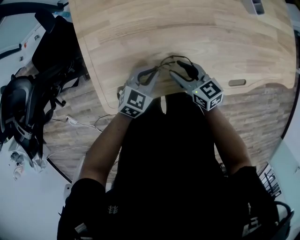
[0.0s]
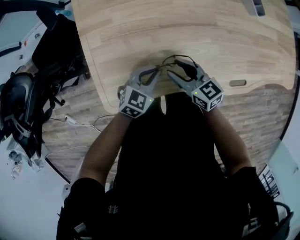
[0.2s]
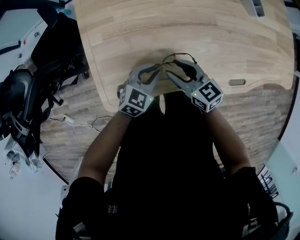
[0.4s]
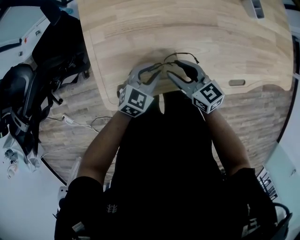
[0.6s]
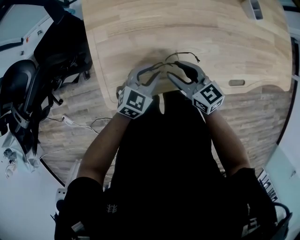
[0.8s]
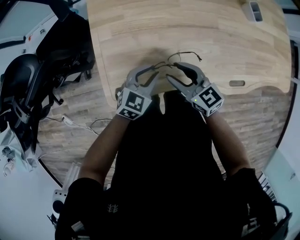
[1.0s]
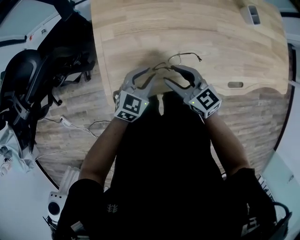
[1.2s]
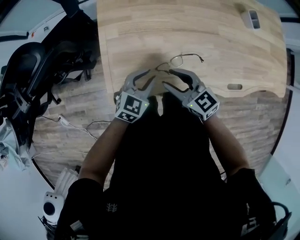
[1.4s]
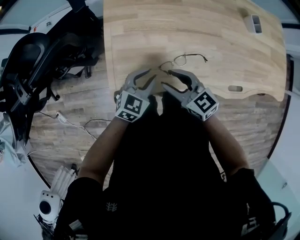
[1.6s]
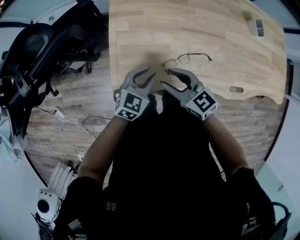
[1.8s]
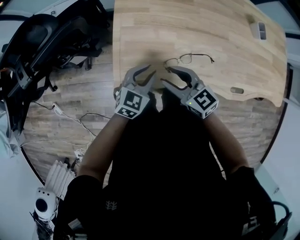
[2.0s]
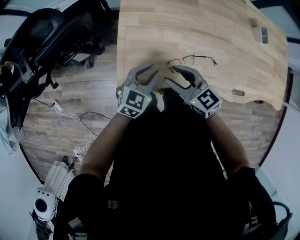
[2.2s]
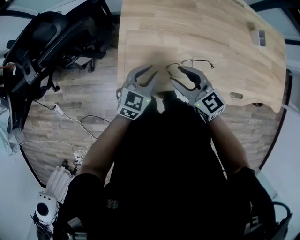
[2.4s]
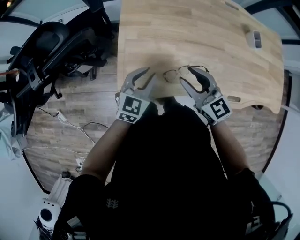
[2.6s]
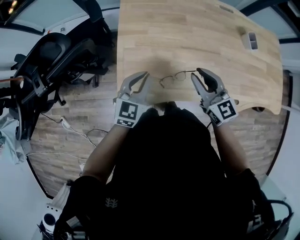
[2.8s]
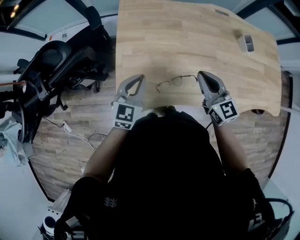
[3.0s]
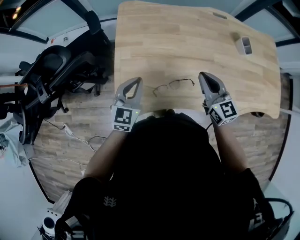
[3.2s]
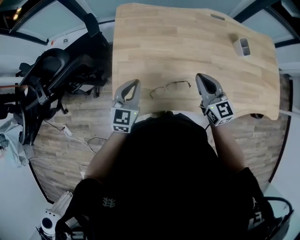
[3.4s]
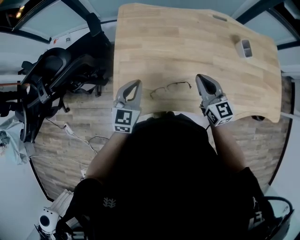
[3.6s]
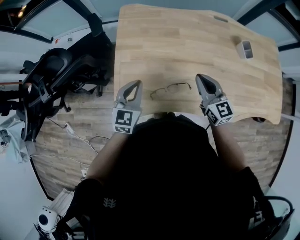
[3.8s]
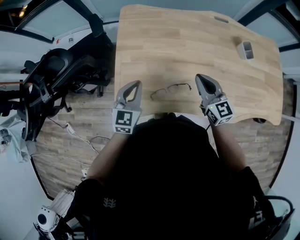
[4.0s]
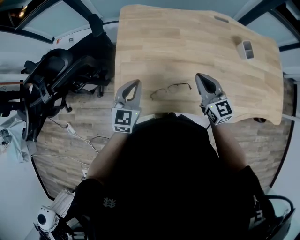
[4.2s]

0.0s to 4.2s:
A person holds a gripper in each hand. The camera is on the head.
0.0s to 1.4s: The right gripper shifts approximately 15 cm to the left, upward and backward, and turns by about 20 degrees. The left gripper heads to the left and upward, covering approximately 10 cm.
1.4s to 2.8s: The right gripper goes some 15 cm upward and to the right. The left gripper goes roughly 10 cm upward and to the left, swivels roughly 20 degrees, and closes its fingers.
2.8s to 4.2s: The right gripper goes approximately 10 cm to the right, and closes its fingers.

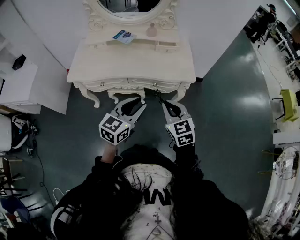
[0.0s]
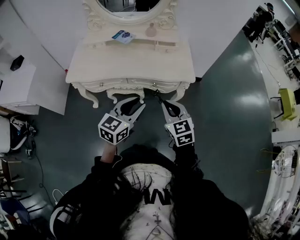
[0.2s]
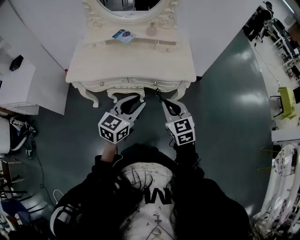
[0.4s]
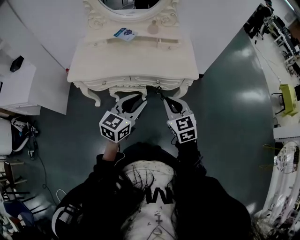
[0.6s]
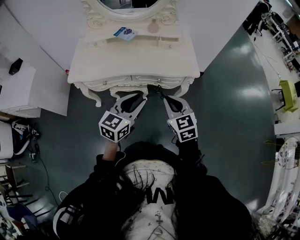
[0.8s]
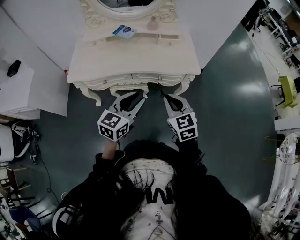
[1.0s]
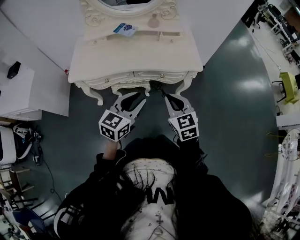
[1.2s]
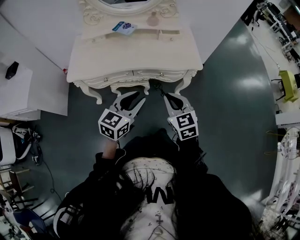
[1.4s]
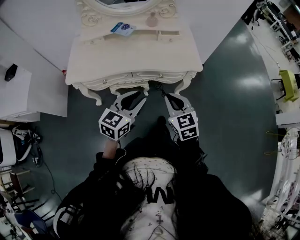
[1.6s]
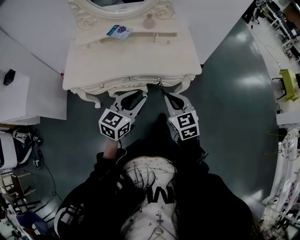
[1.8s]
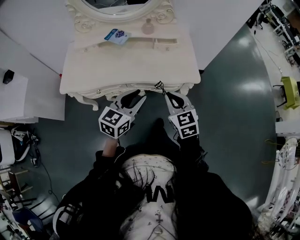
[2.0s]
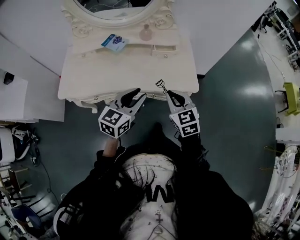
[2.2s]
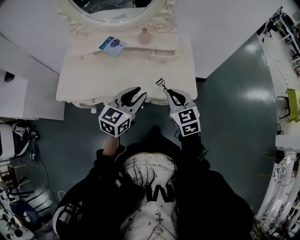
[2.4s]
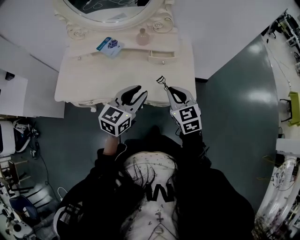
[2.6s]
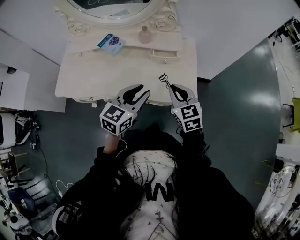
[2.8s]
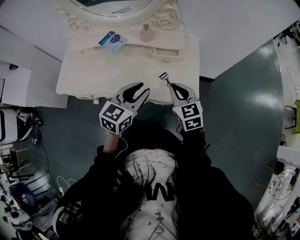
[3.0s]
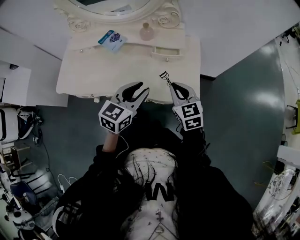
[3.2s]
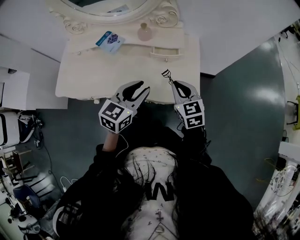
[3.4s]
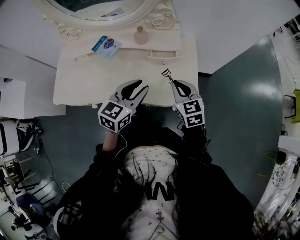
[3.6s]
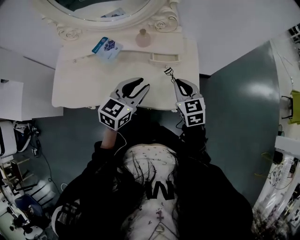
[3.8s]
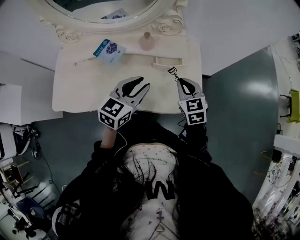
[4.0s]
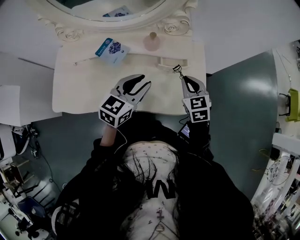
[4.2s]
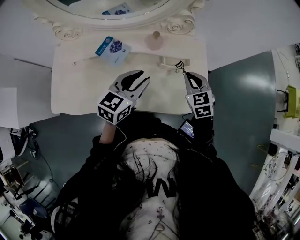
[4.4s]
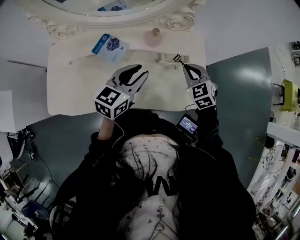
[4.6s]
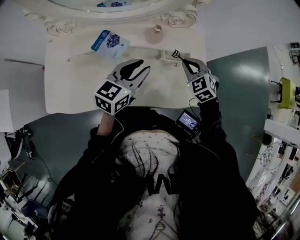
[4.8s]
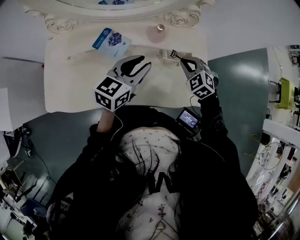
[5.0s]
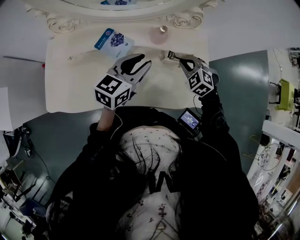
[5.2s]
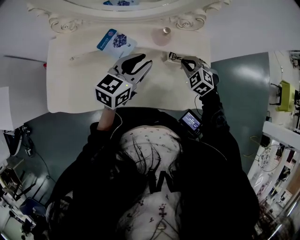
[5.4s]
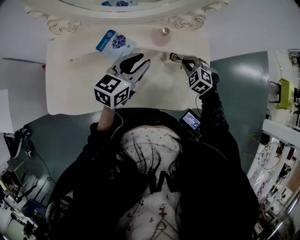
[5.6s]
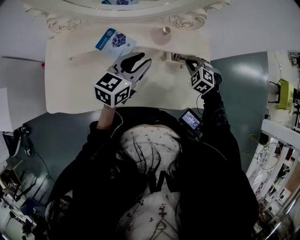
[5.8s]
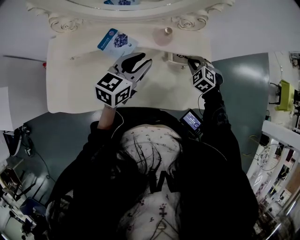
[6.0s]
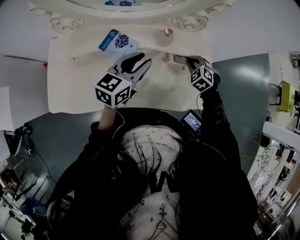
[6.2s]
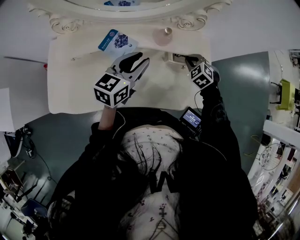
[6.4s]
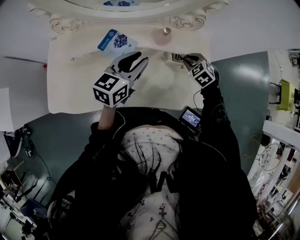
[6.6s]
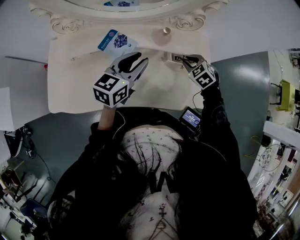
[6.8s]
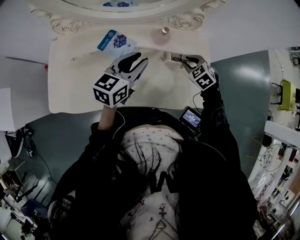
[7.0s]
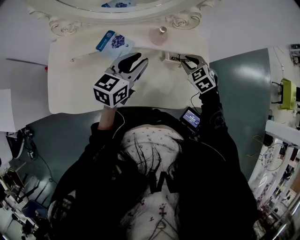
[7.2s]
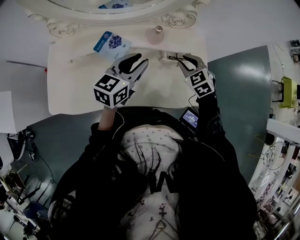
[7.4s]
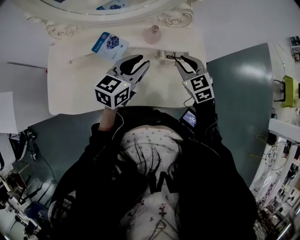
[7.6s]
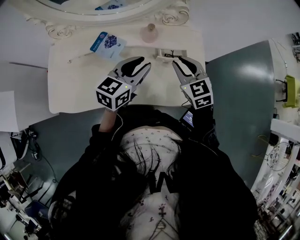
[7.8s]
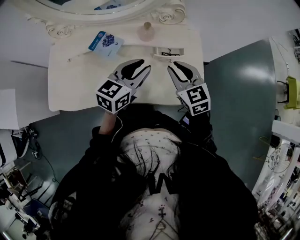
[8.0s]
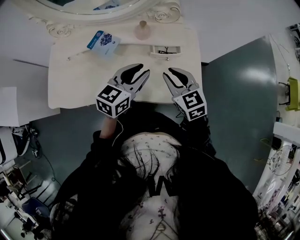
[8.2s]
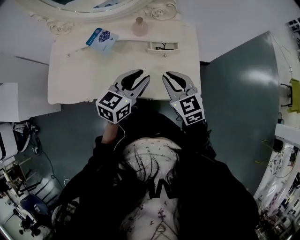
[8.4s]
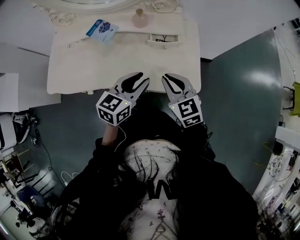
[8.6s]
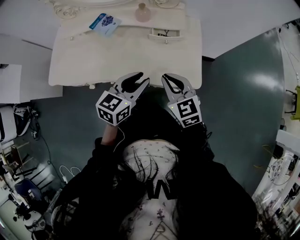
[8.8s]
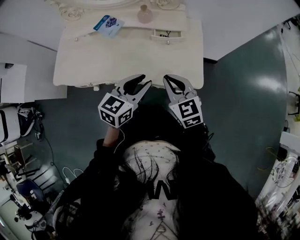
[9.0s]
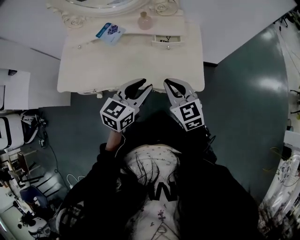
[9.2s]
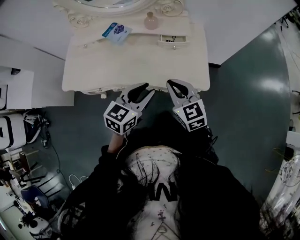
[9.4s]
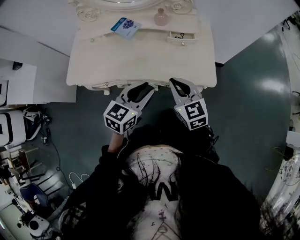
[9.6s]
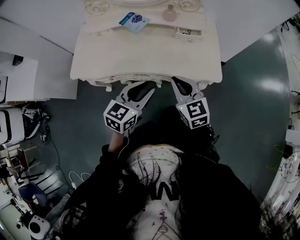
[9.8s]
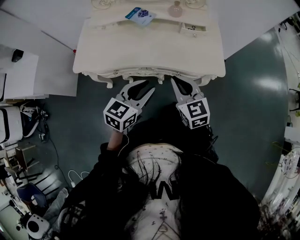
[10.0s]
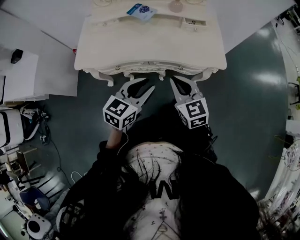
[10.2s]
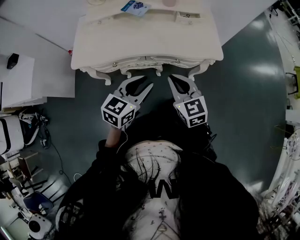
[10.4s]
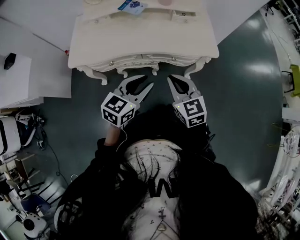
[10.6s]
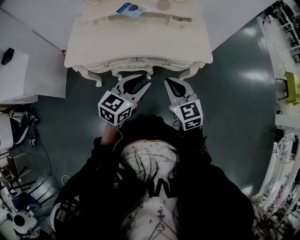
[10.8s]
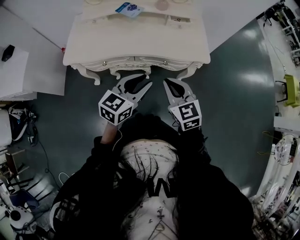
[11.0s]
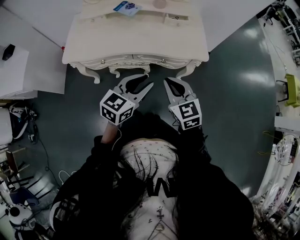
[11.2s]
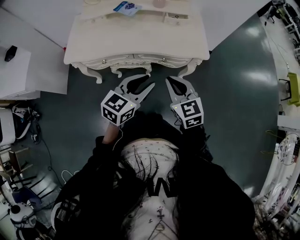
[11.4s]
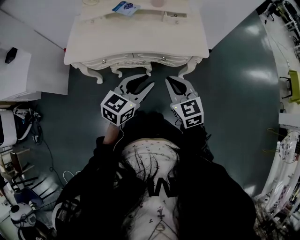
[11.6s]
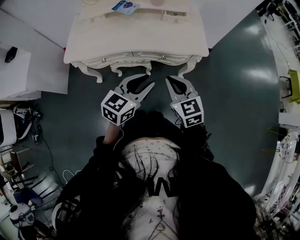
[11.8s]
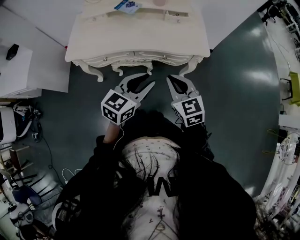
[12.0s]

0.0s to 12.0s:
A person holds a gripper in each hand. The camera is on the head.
0.0s to 1.6s: Both grippers travel together to the left, about 5 cm.
1.6s to 3.0s: The right gripper is displaced forward by some 25 cm; the left gripper shifts approximately 25 cm forward and to the right.
3.0s to 4.4s: The left gripper moves forward and to the left, some 15 cm; the right gripper shifts approximately 15 cm forward.
4.4s to 6.0s: The right gripper moves downward and forward, some 10 cm, and rotates some 40 degrees. Meanwhile the left gripper moves forward and to the left, about 5 cm.
6.0s to 7.6s: The right gripper travels upward by some 10 cm, and turns by some 40 degrees.
7.6s to 9.0s: The right gripper goes roughly 20 cm backward. Meanwhile the left gripper goes approximately 20 cm backward and to the right.
9.0s to 10.4s: Both grippers move backward and to the left, roughly 25 cm.
10.4s to 12.0s: The grippers both shift to the right by about 10 cm.

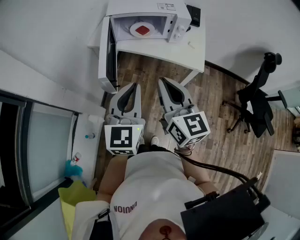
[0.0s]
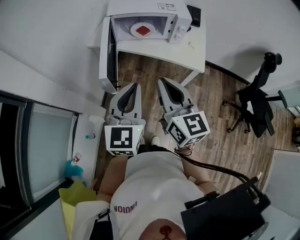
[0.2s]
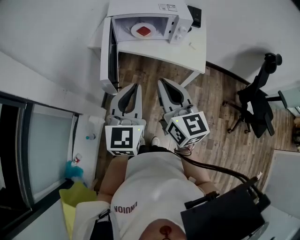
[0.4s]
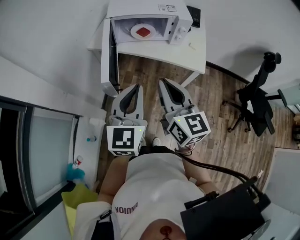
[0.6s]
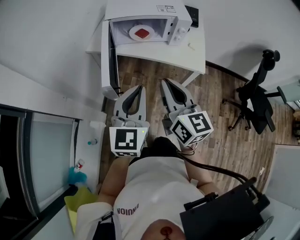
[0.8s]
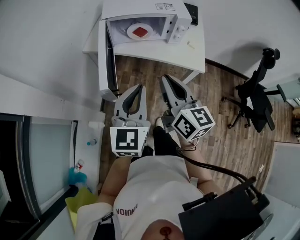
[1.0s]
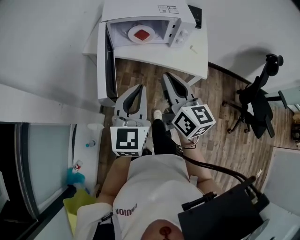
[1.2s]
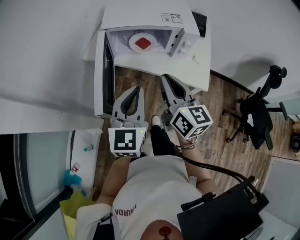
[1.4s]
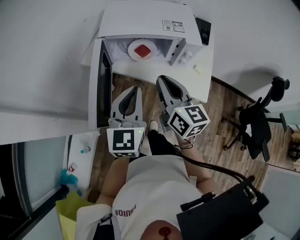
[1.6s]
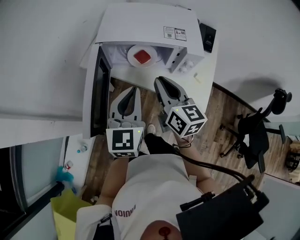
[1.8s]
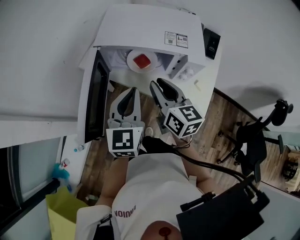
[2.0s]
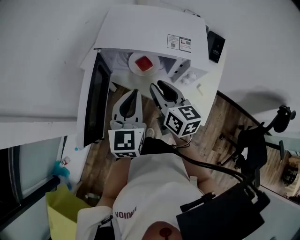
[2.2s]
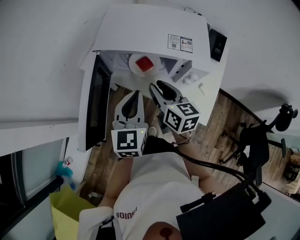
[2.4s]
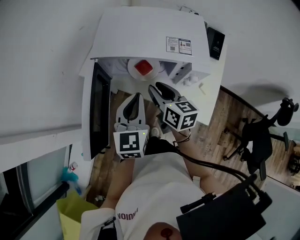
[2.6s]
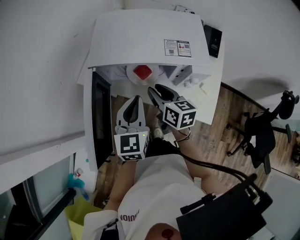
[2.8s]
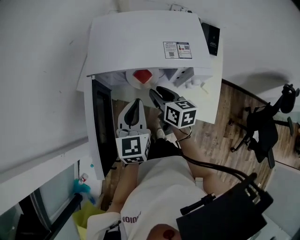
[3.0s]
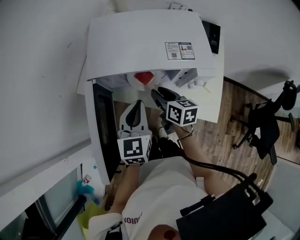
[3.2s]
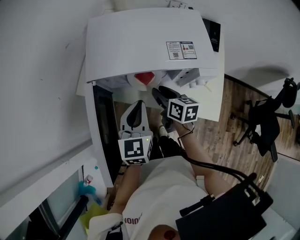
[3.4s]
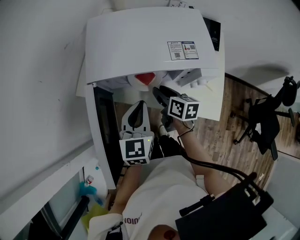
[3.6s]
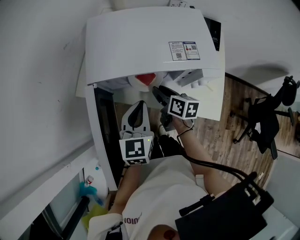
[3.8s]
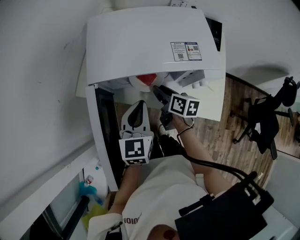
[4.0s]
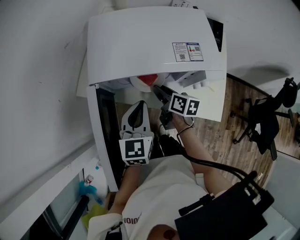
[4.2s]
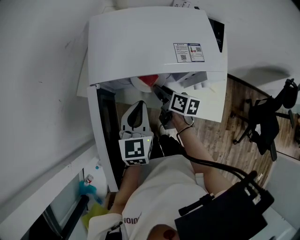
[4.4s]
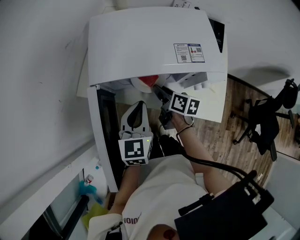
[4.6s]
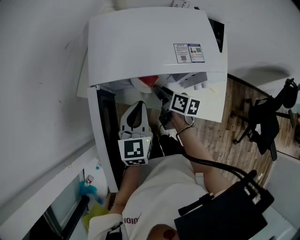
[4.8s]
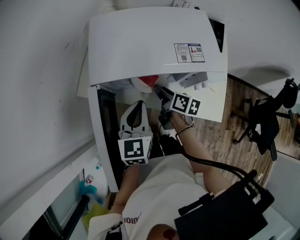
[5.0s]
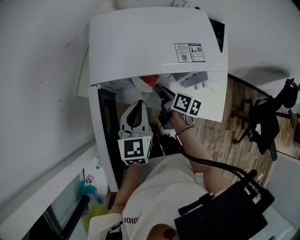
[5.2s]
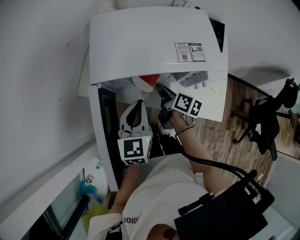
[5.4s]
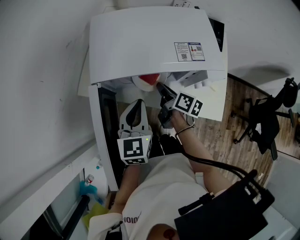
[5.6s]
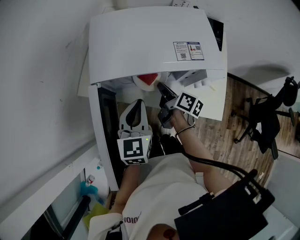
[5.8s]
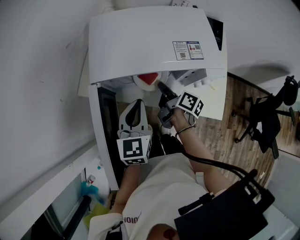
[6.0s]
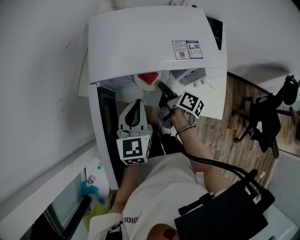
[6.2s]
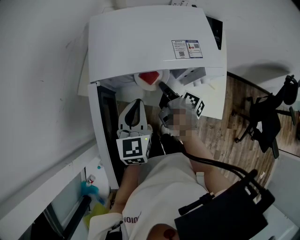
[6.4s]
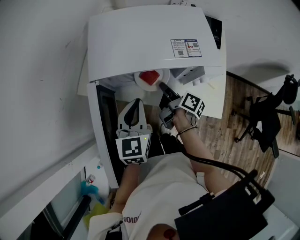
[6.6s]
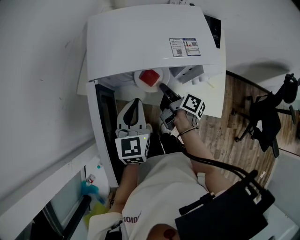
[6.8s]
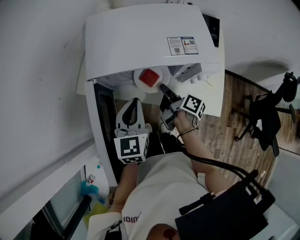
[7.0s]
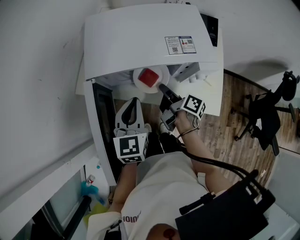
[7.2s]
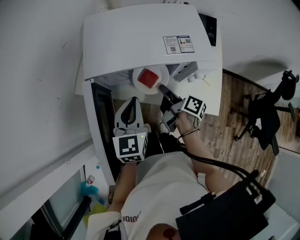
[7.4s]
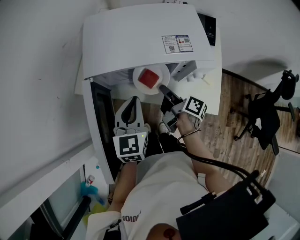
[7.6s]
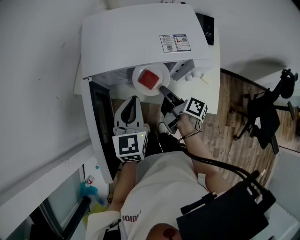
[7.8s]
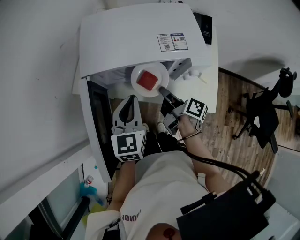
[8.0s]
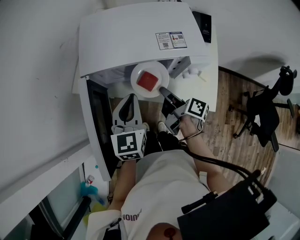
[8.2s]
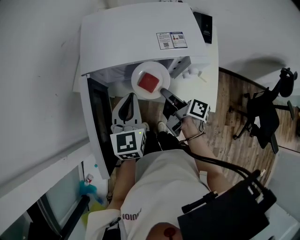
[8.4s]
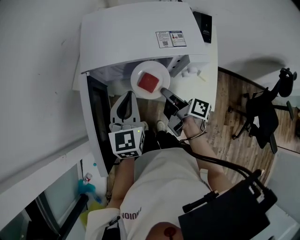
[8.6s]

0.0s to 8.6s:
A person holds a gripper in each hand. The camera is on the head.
0.0s to 1.4s: Both grippers travel together forward, about 15 cm.
1.4s to 2.8s: The left gripper is displaced forward by roughly 15 cm; the right gripper goes some 25 cm forward and downward, changes its angle by some 20 degrees, and opens up.
2.8s to 4.4s: The left gripper moves some 5 cm. Meanwhile the right gripper shifts some 10 cm downward and forward, and rotates some 30 degrees.
4.4s to 5.8s: The right gripper closes.
5.8s to 7.2s: There are only small adjustments of the grippers.
7.2s to 8.6s: The right gripper heads upward, covering some 5 cm.
